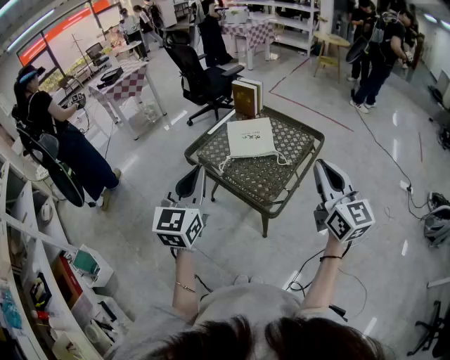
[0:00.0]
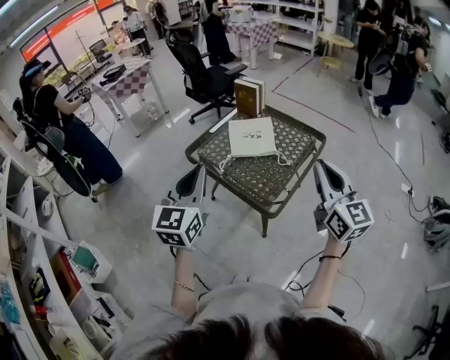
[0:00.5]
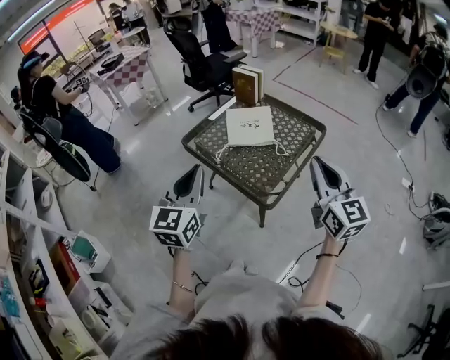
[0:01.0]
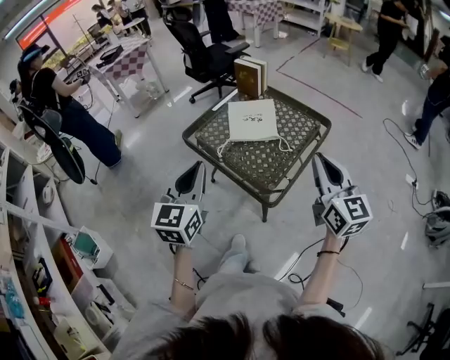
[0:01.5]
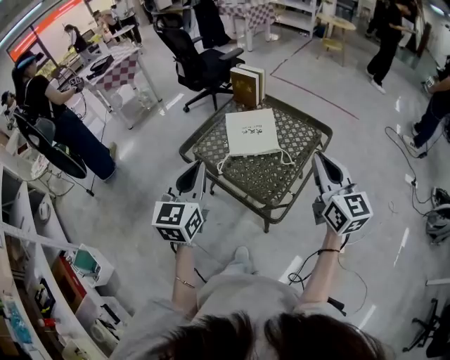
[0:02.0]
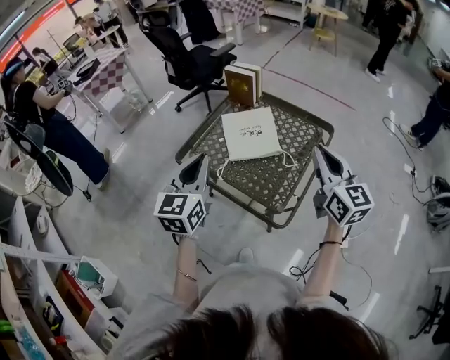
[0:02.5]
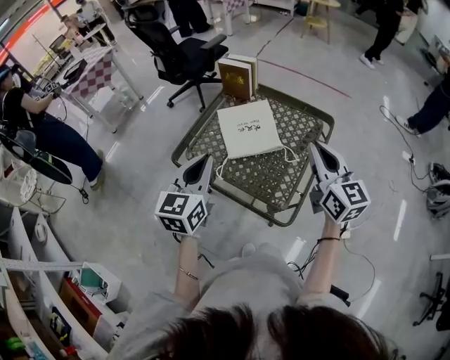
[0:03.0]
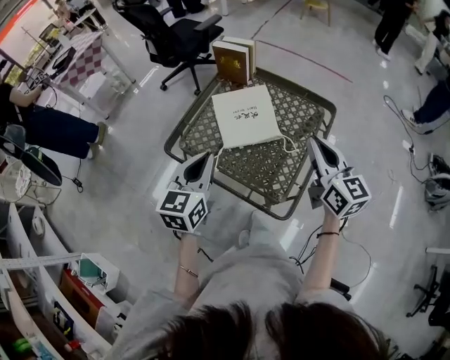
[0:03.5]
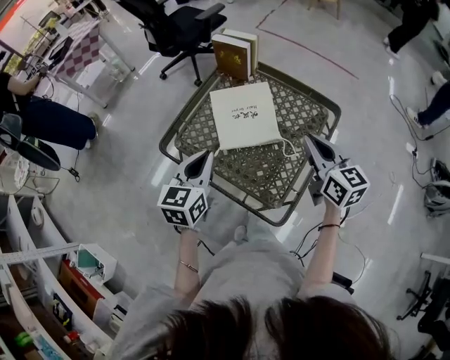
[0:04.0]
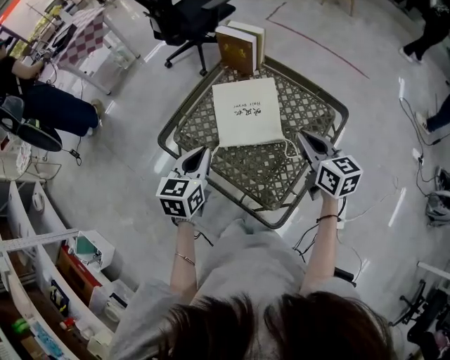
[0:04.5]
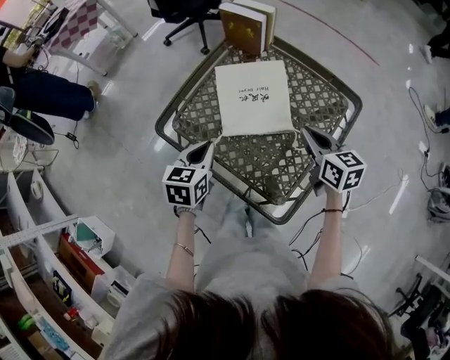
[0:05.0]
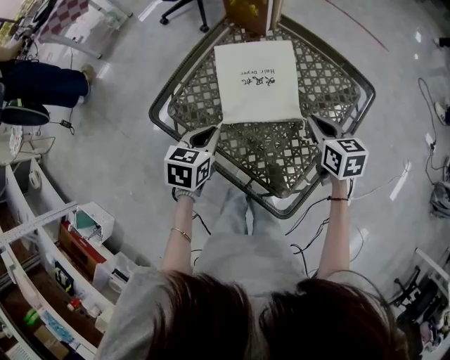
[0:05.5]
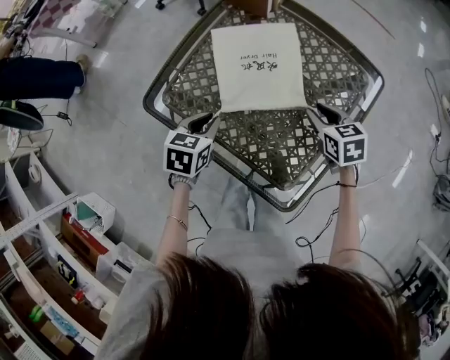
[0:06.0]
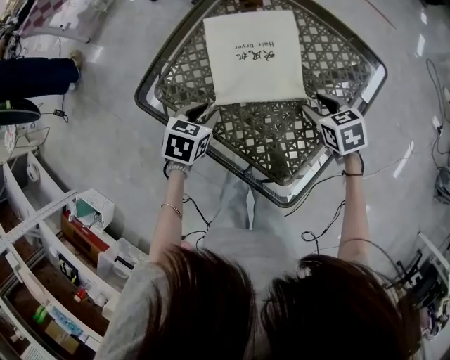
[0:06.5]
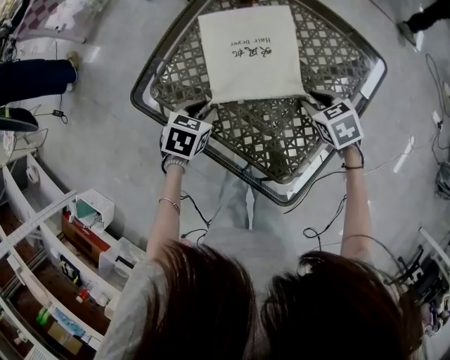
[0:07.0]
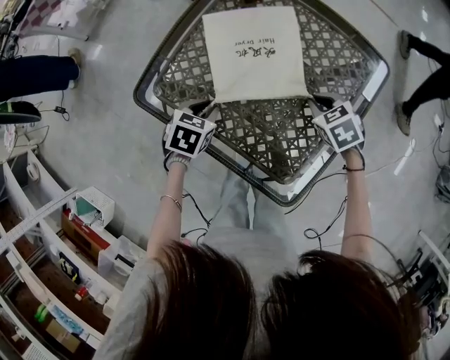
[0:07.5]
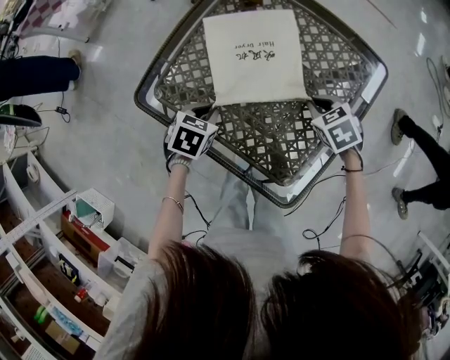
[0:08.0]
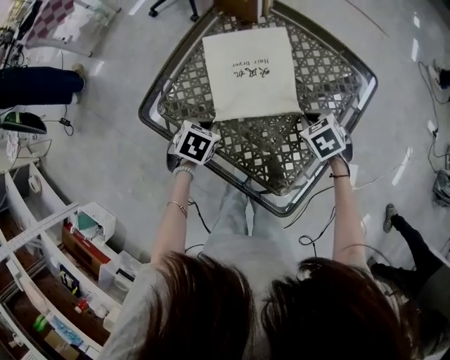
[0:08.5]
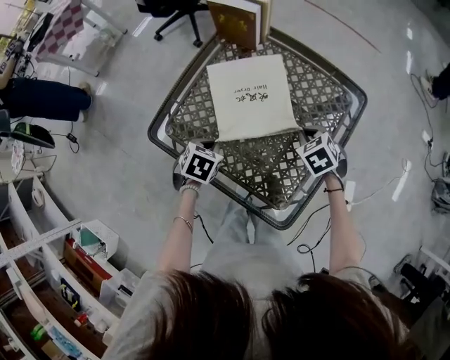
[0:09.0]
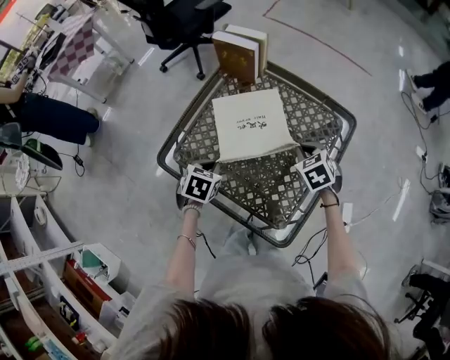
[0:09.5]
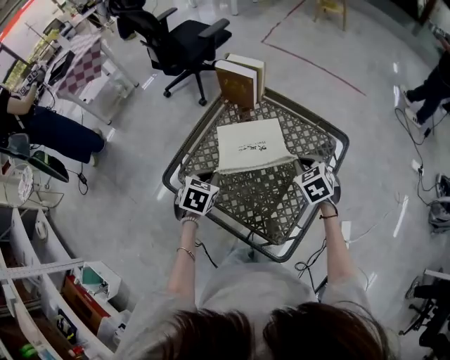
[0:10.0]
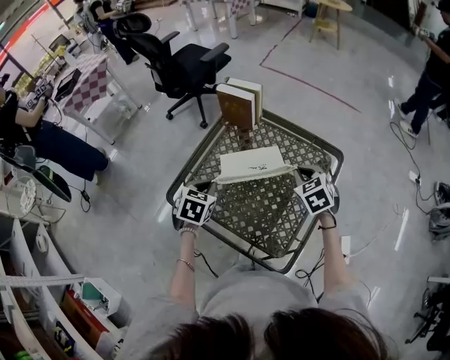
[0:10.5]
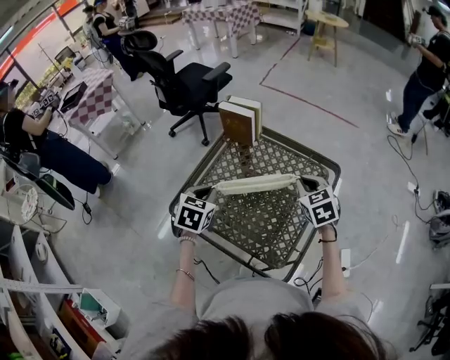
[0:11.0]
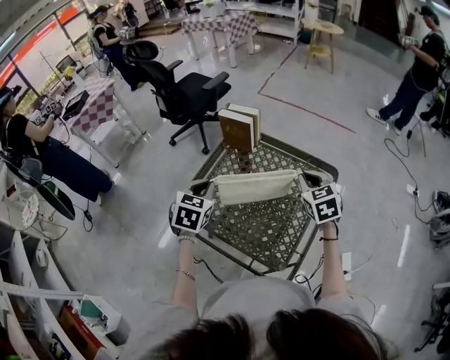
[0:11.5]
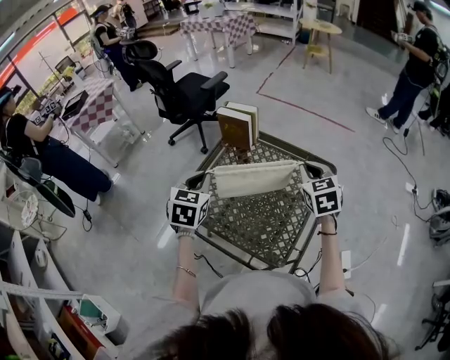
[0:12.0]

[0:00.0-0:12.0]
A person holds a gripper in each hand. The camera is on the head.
0:00.0 to 0:02.0: The two grippers go approximately 10 cm forward.
0:02.0 to 0:04.0: Both grippers move forward and downward, approximately 20 cm. The left gripper changes its angle by roughly 20 degrees.
0:04.0 to 0:06.0: Both grippers move downward, approximately 25 cm. The left gripper tilts its fingers about 30 degrees downward. Meanwhile the right gripper tilts its fingers roughly 40 degrees downward, and opens up.
0:06.0 to 0:08.0: The left gripper travels downward by about 5 cm, while the right gripper turns by roughly 20 degrees, and closes its fingers.
0:08.0 to 0:10.0: Both grippers move upward, some 15 cm.
0:10.0 to 0:12.0: The grippers both shift upward by approximately 20 cm. The left gripper rotates approximately 30 degrees. The right gripper rotates some 30 degrees.

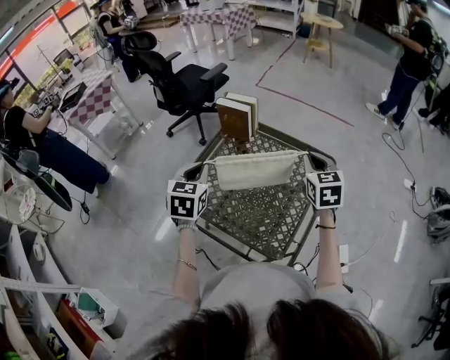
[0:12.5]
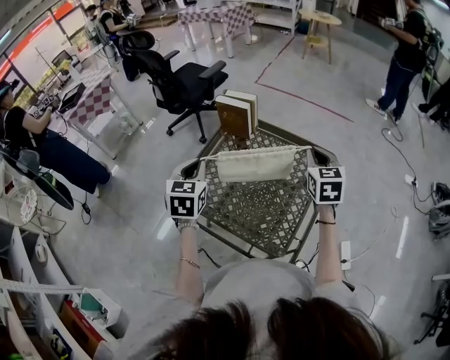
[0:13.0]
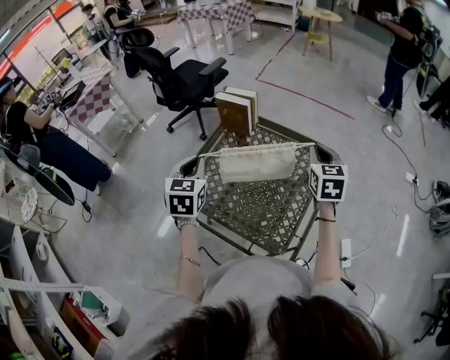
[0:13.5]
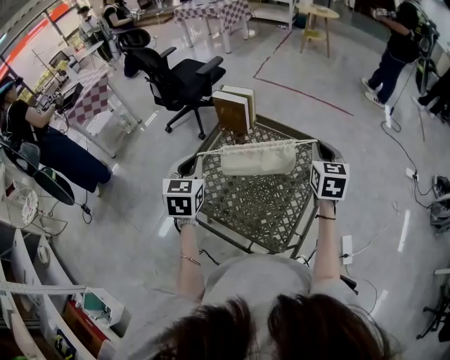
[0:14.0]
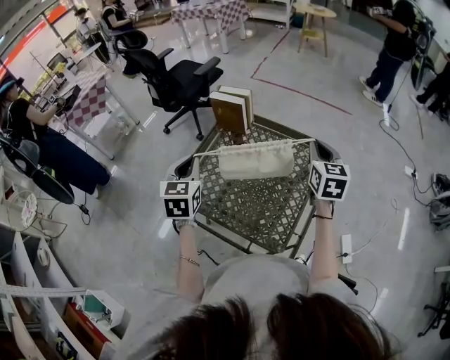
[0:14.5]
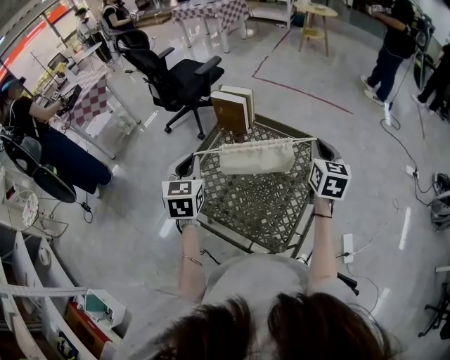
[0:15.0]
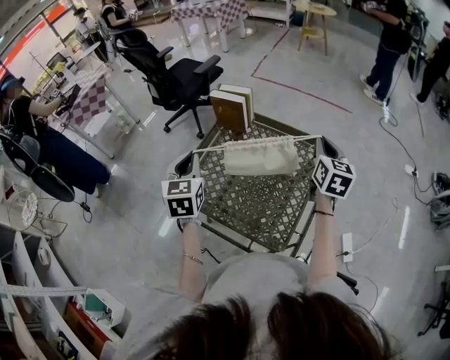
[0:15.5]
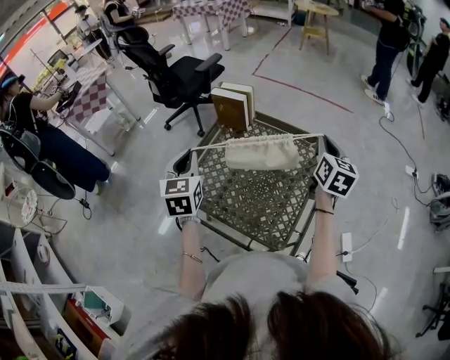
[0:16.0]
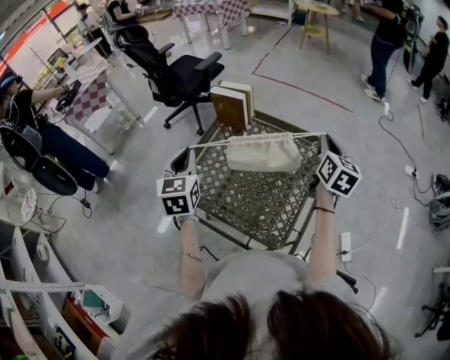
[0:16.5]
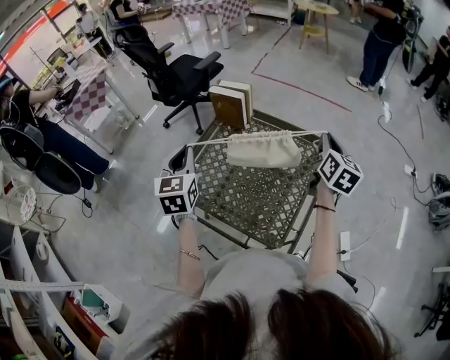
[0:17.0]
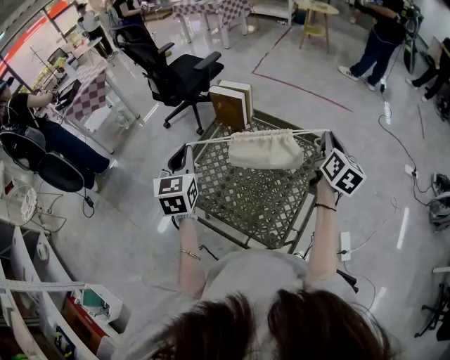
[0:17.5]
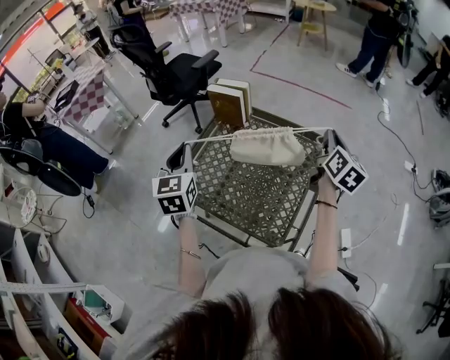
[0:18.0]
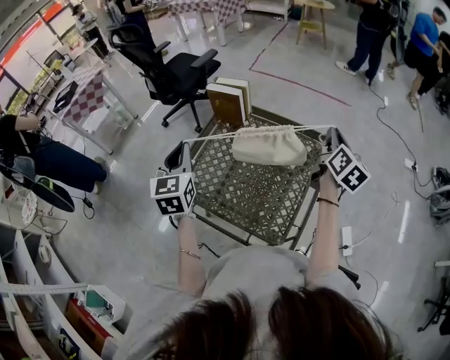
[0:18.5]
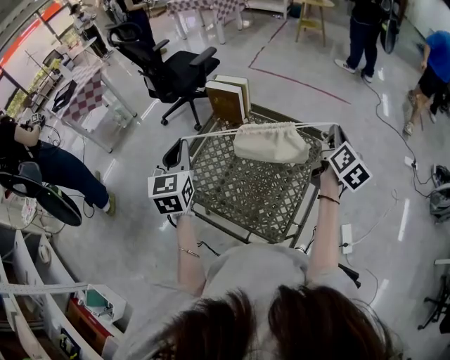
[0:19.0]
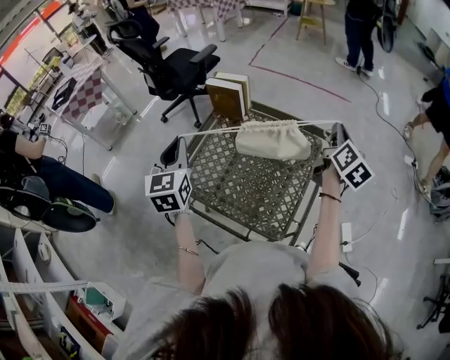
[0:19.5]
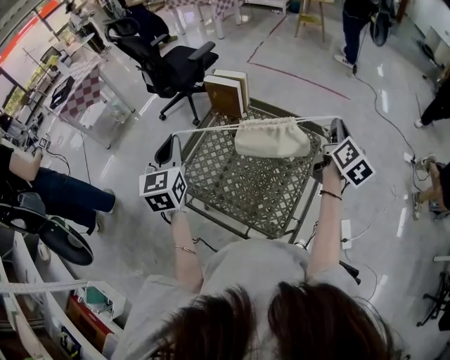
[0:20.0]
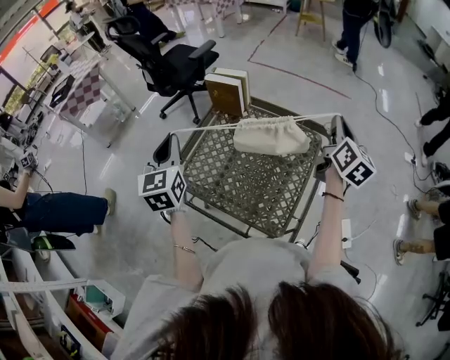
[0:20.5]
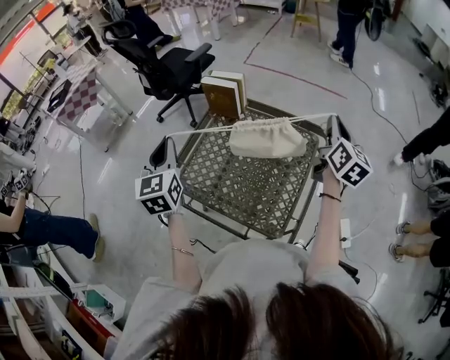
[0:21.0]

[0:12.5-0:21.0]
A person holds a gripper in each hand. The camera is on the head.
0:12.5 to 0:14.5: The grippers move only a little.
0:14.5 to 0:16.5: The grippers make only small movements.
0:16.5 to 0:19.0: The grippers move only a little.
0:19.0 to 0:21.0: The grippers stay close to where they were, moving slightly.

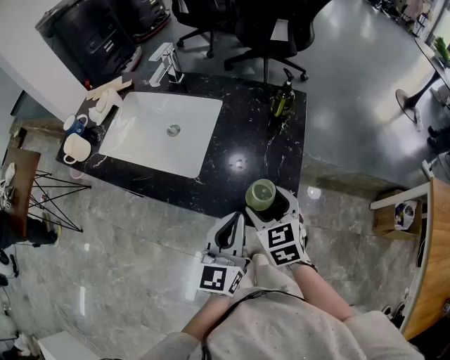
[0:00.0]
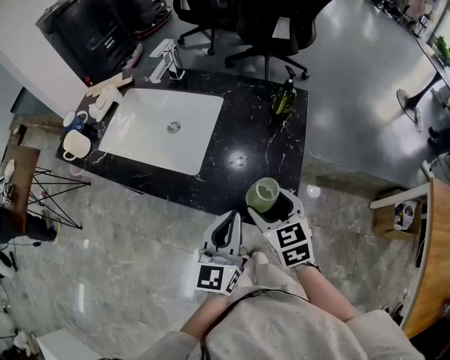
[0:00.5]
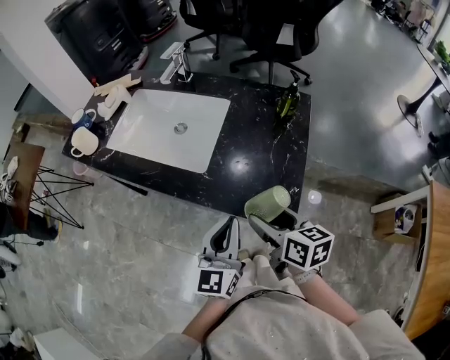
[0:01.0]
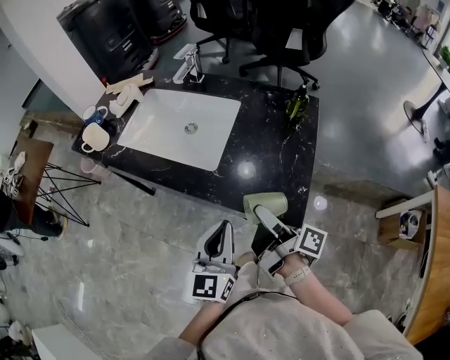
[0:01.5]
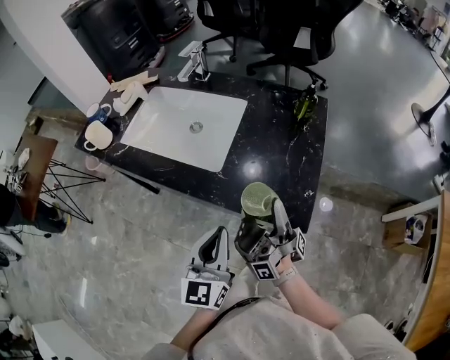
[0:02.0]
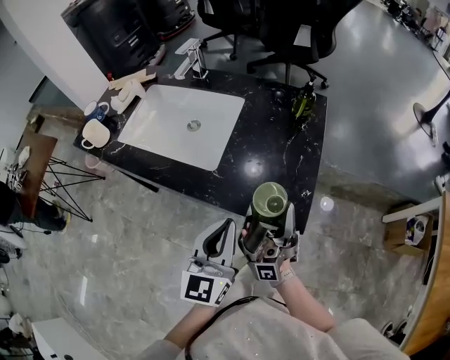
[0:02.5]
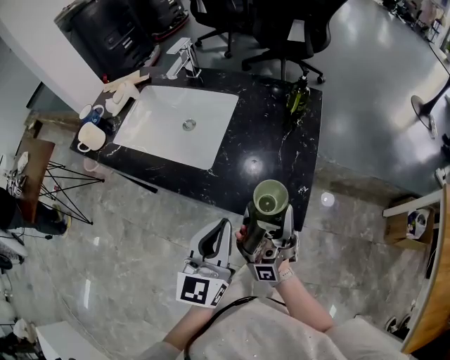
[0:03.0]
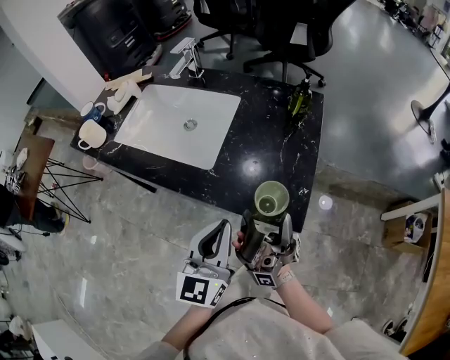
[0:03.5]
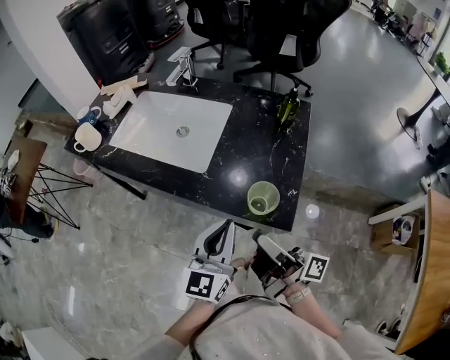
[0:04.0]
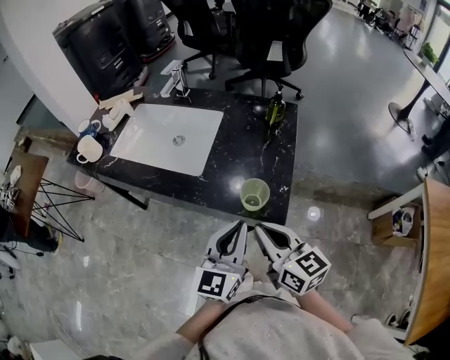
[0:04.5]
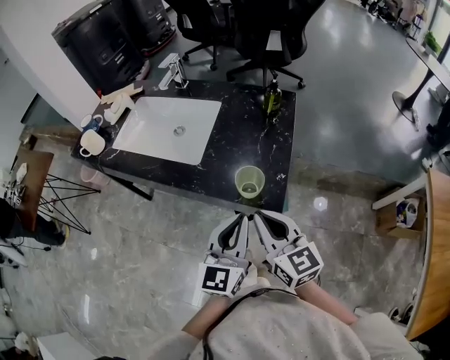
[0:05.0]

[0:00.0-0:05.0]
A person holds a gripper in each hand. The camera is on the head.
0:02.5 to 0:05.0: The left gripper moves roughly 10 cm.

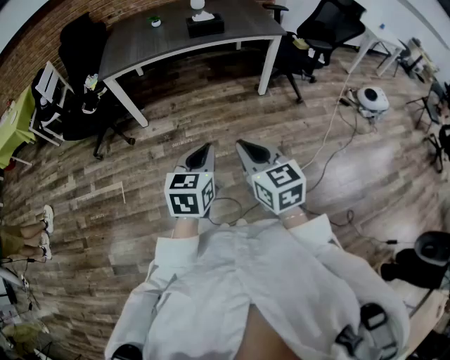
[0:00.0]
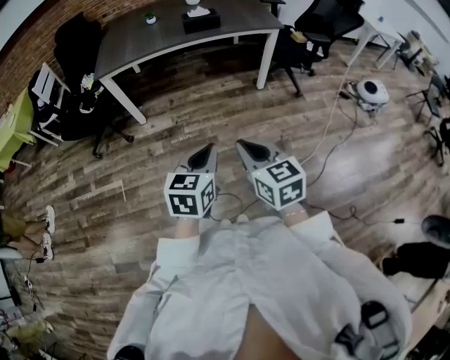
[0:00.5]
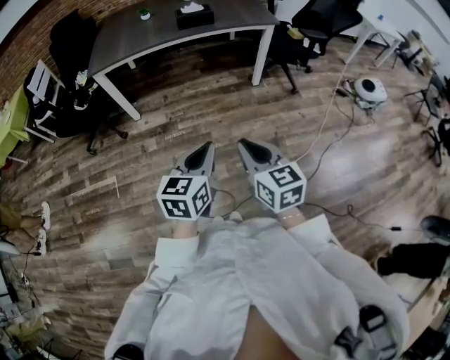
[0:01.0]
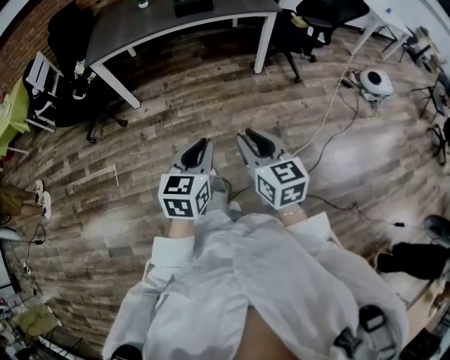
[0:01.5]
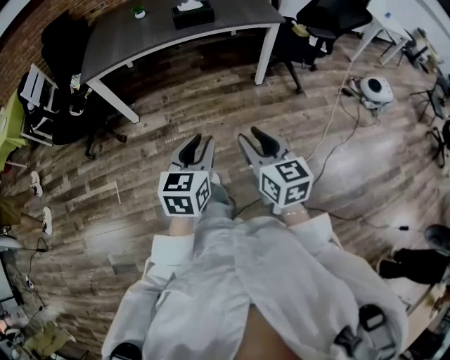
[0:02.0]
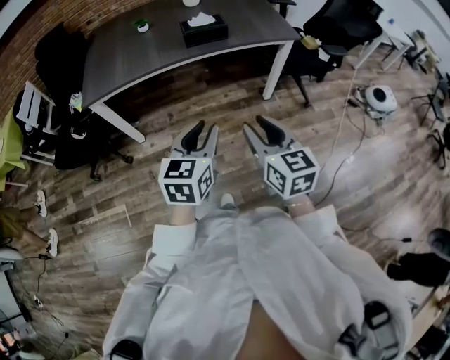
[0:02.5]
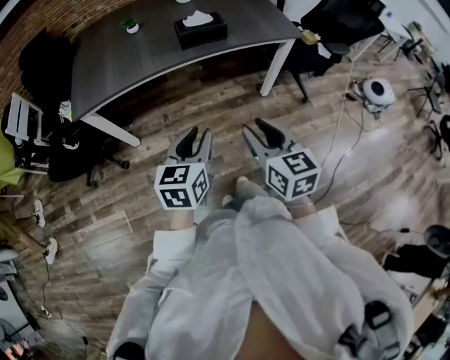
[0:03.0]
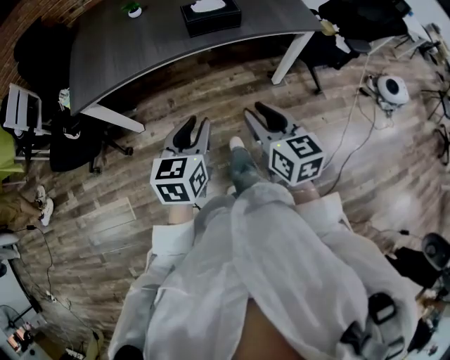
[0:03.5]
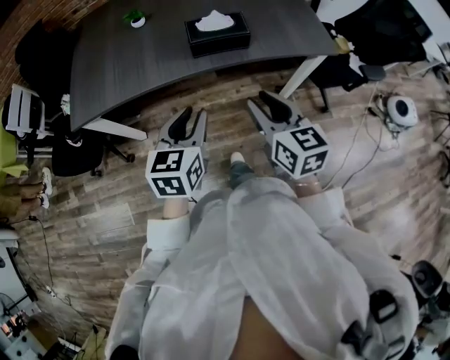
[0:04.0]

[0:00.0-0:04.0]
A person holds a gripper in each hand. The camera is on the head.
0:00.0 to 0:02.0: The right gripper moves forward and to the right, approximately 15 cm, and opens up, while the left gripper moves forward, some 10 cm, and opens its fingers.
0:02.0 to 0:04.0: The pair of grippers is taken forward, roughly 50 cm.
